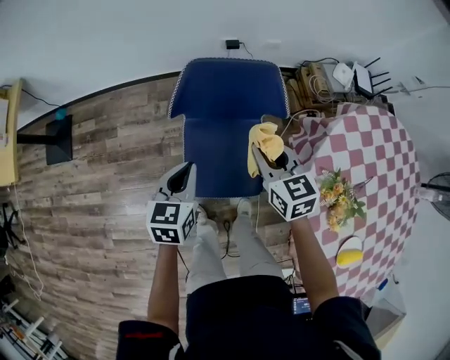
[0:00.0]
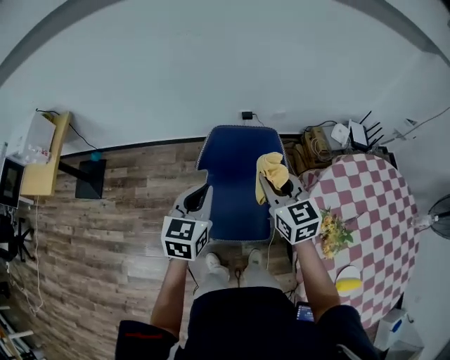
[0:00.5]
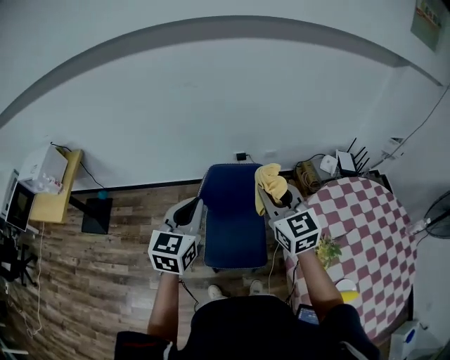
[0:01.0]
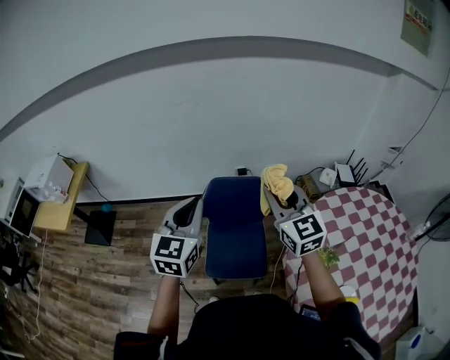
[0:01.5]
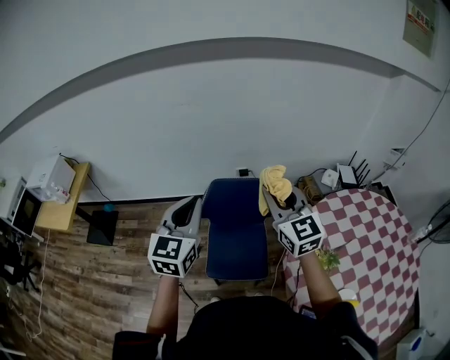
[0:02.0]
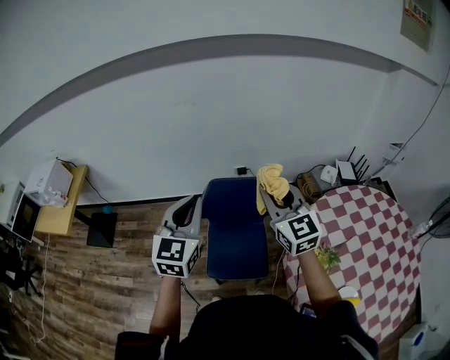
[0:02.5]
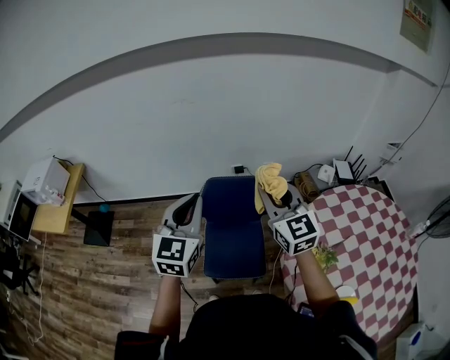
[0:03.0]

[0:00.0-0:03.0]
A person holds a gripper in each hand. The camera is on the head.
0:00.0 to 0:01.5: The grippers both shift upward by about 35 cm. The right gripper rotates approximately 30 degrees. The left gripper rotates about 30 degrees.
0:01.5 to 0:03.0: The grippers move only a little.

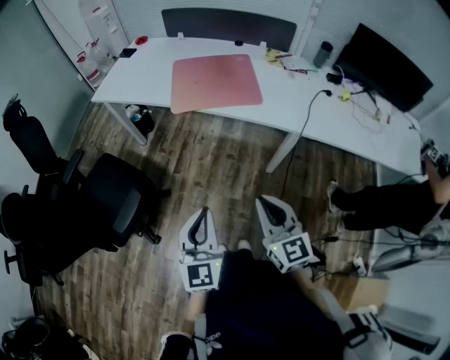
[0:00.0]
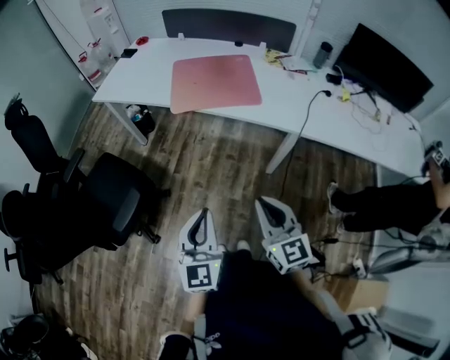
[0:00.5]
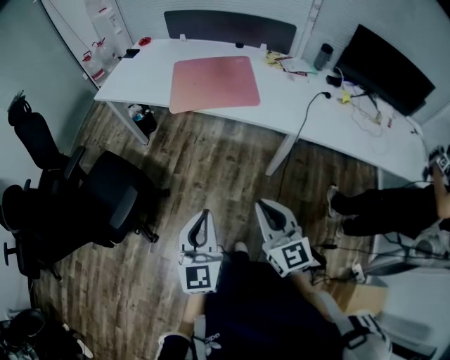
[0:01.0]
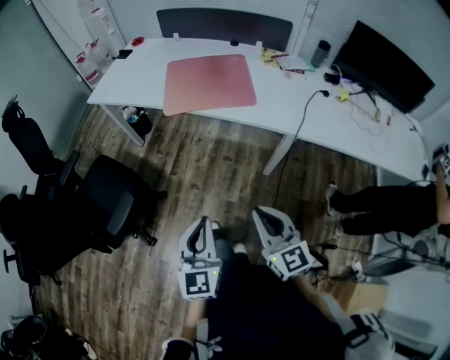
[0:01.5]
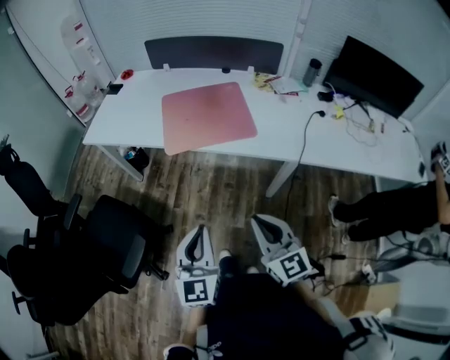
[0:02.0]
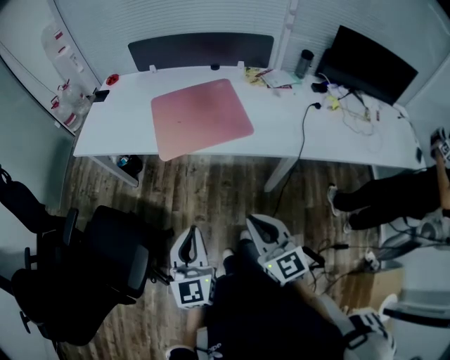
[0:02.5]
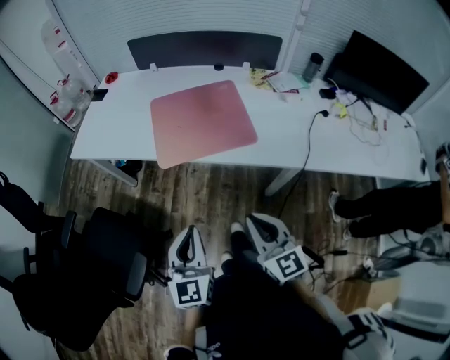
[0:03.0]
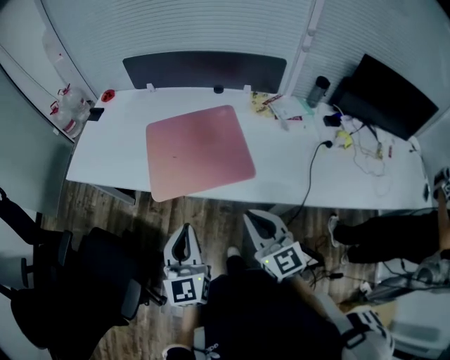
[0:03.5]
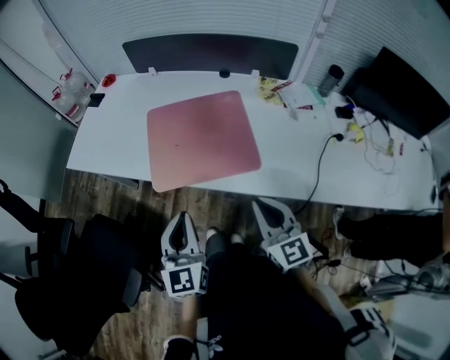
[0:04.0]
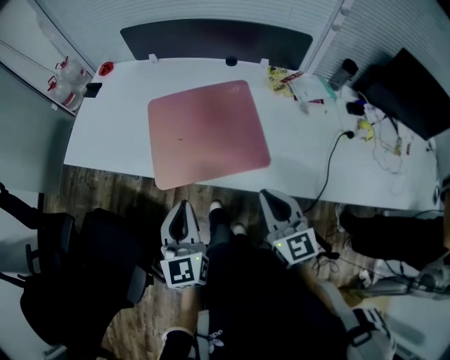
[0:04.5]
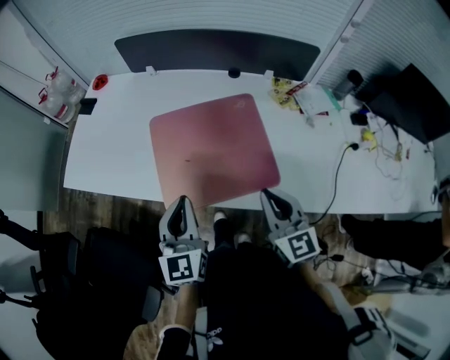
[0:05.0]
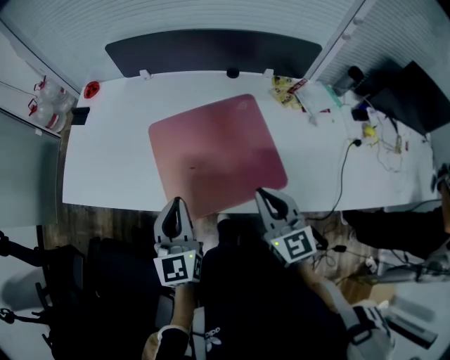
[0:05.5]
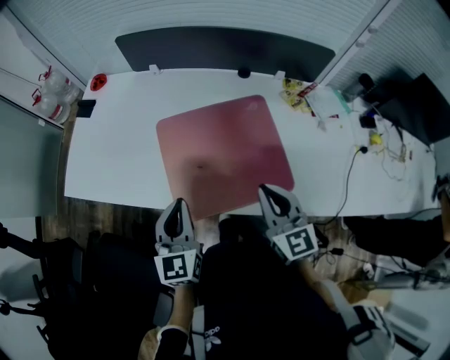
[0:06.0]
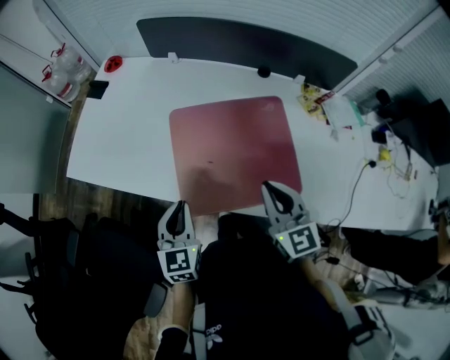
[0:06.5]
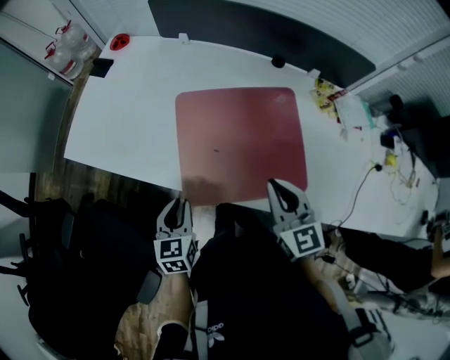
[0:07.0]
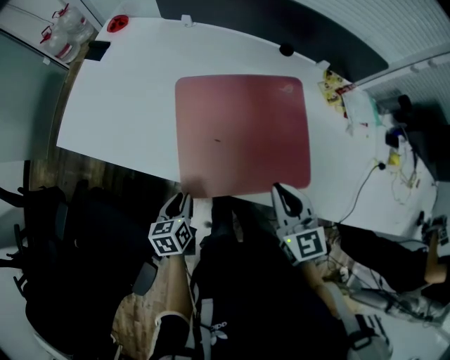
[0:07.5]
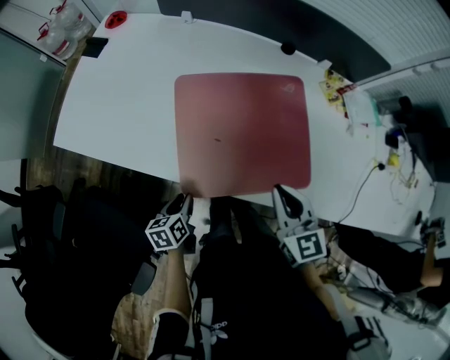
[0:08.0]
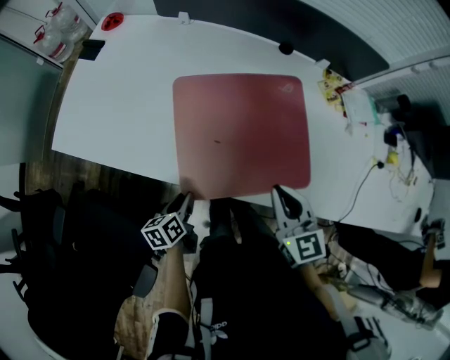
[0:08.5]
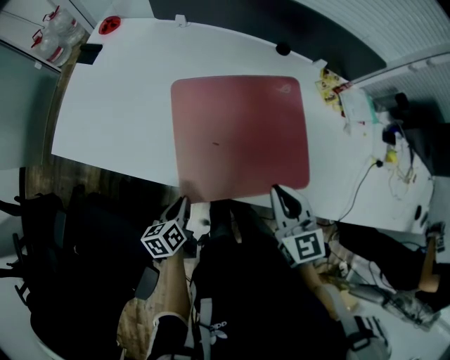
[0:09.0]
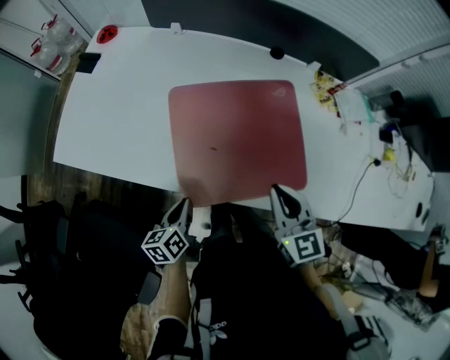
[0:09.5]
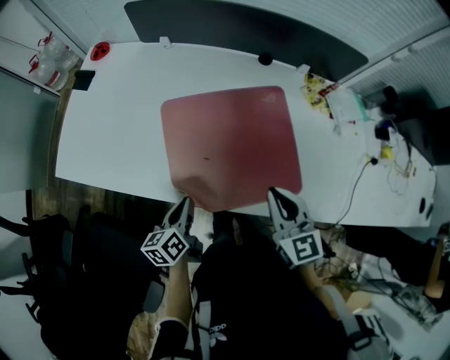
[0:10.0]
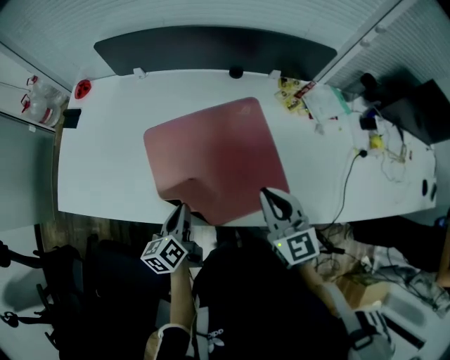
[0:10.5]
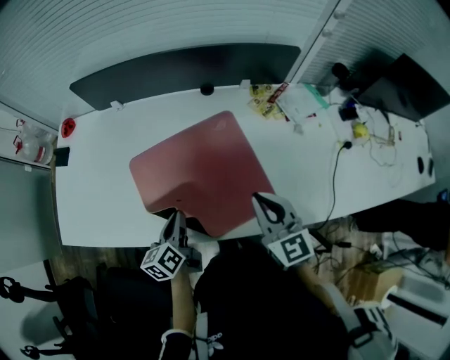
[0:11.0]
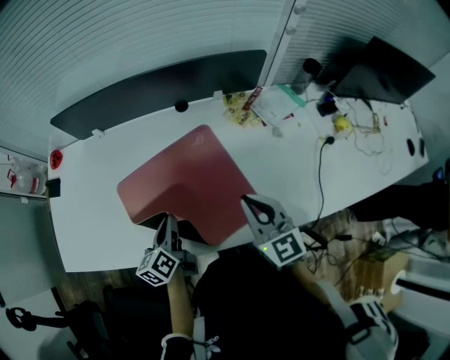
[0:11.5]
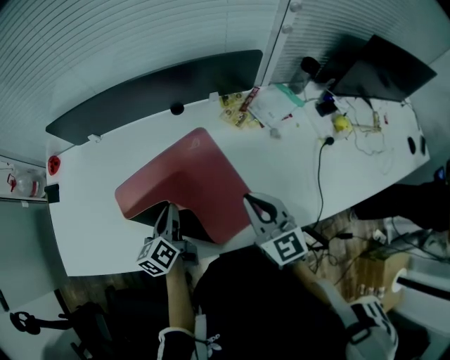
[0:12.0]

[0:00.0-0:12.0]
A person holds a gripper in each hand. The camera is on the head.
0:00.0 to 0:02.0: Both grippers move forward, approximately 10 cm.
0:02.0 to 0:04.0: The two grippers go approximately 25 cm forward.
0:04.0 to 0:06.0: The grippers both shift forward and to the left by approximately 20 cm.
0:06.0 to 0:08.0: The left gripper goes about 25 cm downward, tips its fingers downward by some 30 degrees, and opens its fingers; the right gripper is displaced downward by some 5 cm.
0:08.0 to 0:10.0: The left gripper heads upward and forward, covering about 10 cm.
0:10.0 to 0:12.0: The right gripper is displaced to the right and forward by some 15 cm. Meanwhile the left gripper shifts about 20 cm forward and to the right.

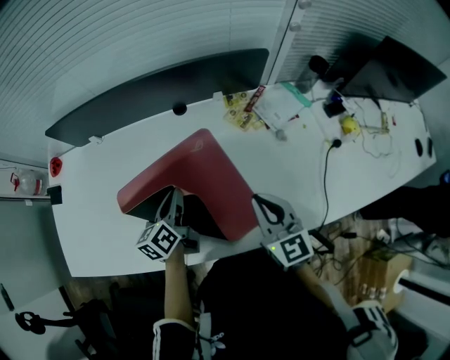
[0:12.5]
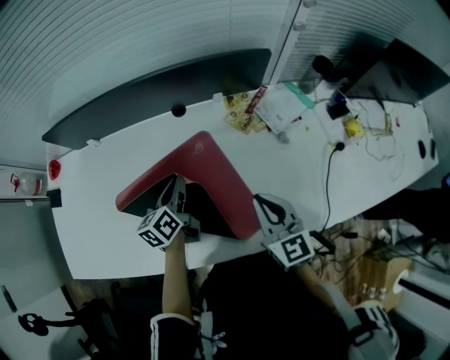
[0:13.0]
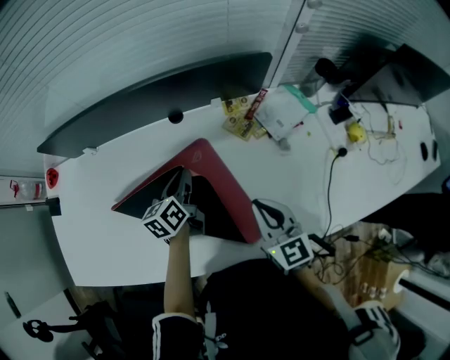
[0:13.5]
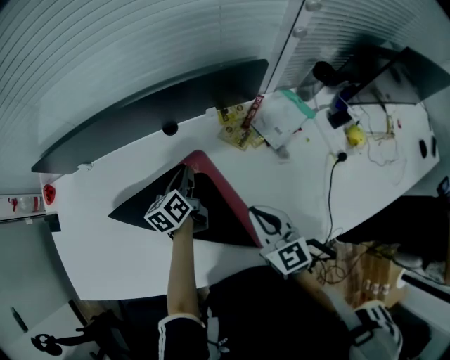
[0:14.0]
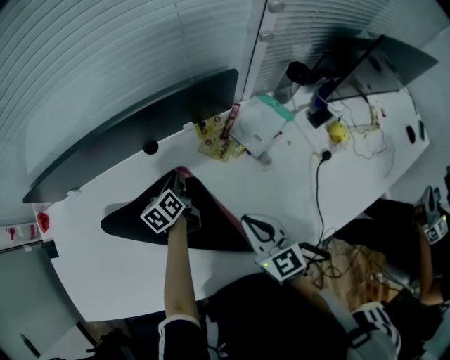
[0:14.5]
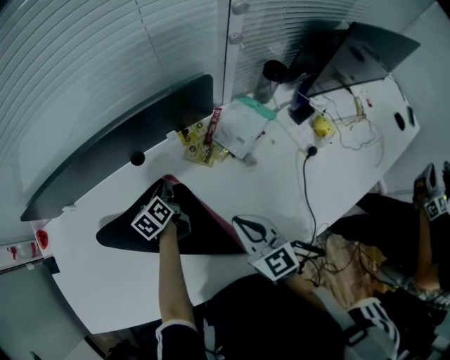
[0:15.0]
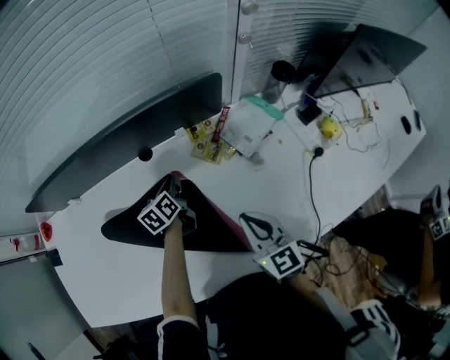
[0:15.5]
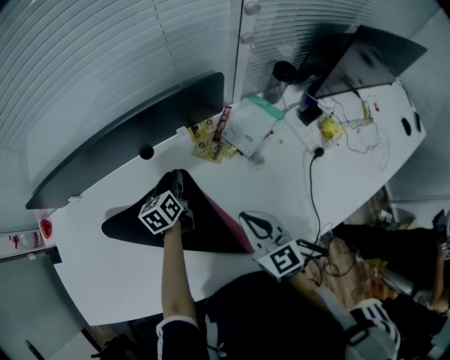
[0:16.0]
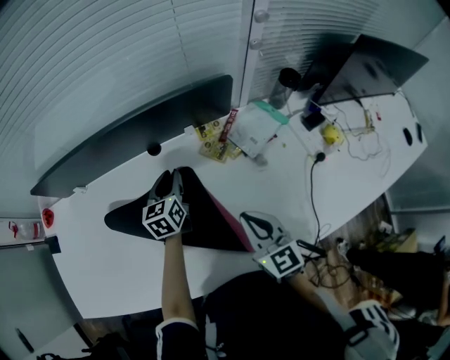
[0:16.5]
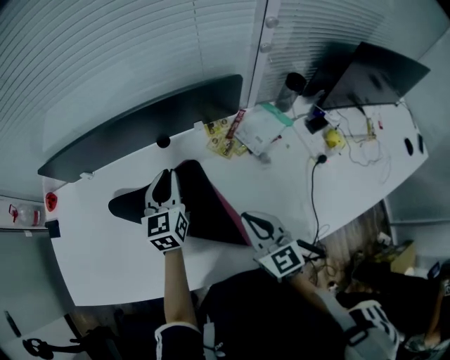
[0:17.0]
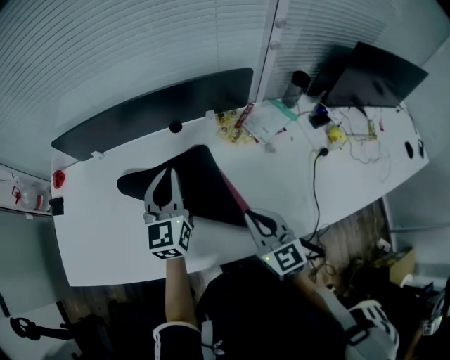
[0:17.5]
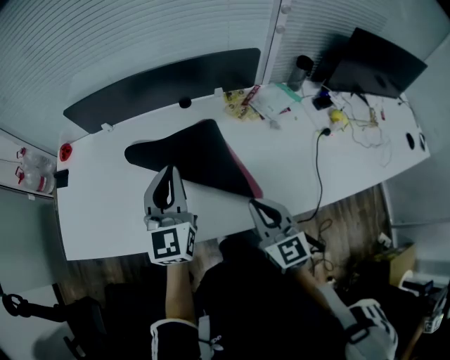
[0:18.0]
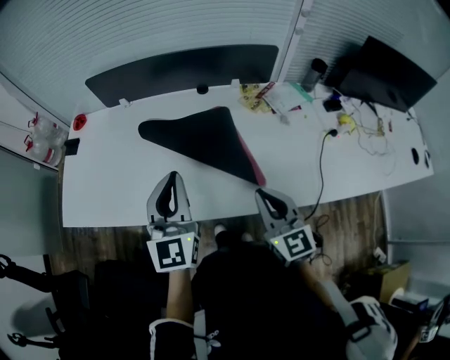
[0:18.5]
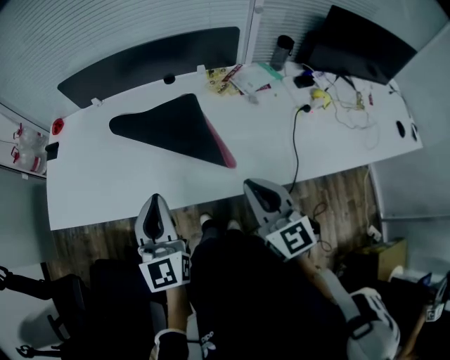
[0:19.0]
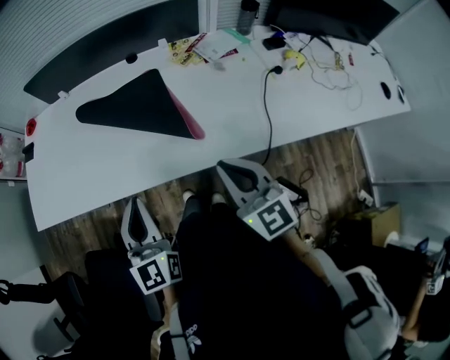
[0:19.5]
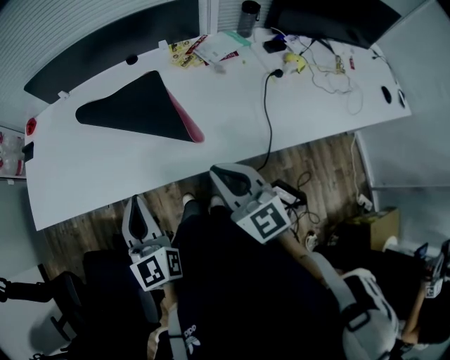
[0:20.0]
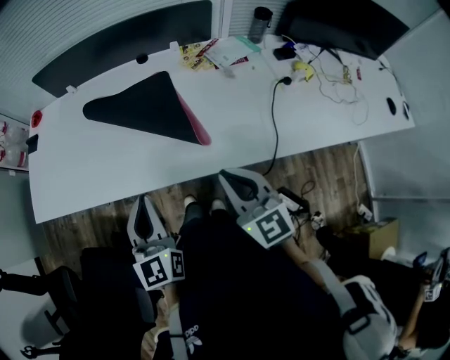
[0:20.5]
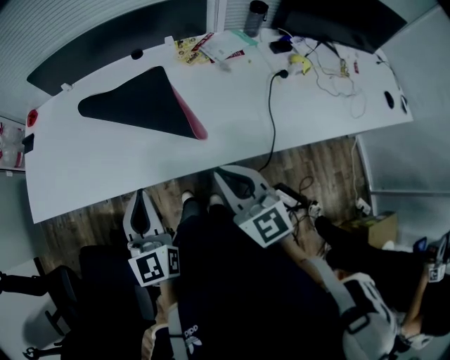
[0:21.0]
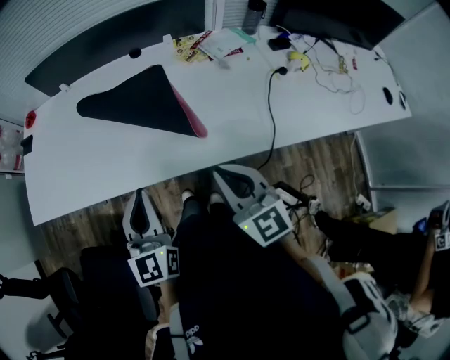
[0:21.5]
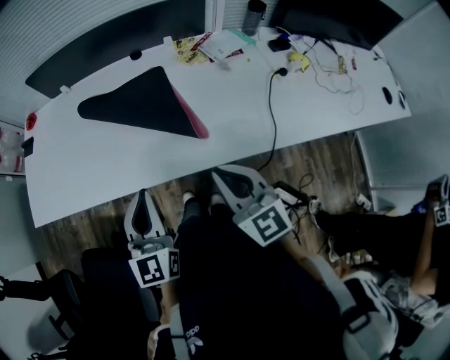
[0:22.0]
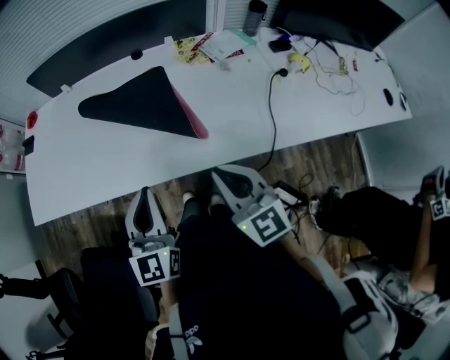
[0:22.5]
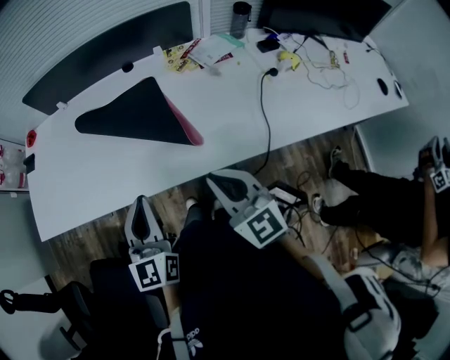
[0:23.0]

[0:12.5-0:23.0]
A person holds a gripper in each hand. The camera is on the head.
0:12.5 to 0:14.5: The left gripper goes roughly 25 cm forward, to the right and downward; the right gripper goes roughly 10 cm forward and downward.
0:14.5 to 0:16.5: The left gripper shifts approximately 5 cm upward, and changes its angle by some 30 degrees.
0:16.5 to 0:19.0: The left gripper heads backward and upward, covering some 50 cm, changes its angle by some 30 degrees, and closes up. The right gripper is displaced backward and upward by some 25 cm.
0:19.0 to 0:21.0: The left gripper travels backward by some 5 cm, while the right gripper changes place by some 5 cm.
0:21.0 to 0:23.0: The grippers make only small movements.

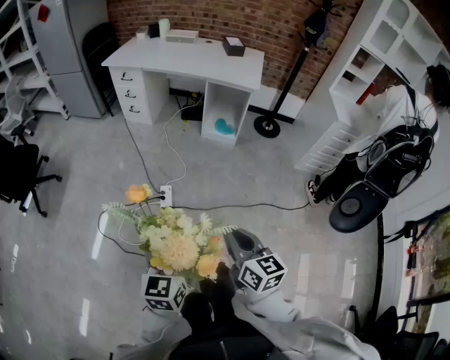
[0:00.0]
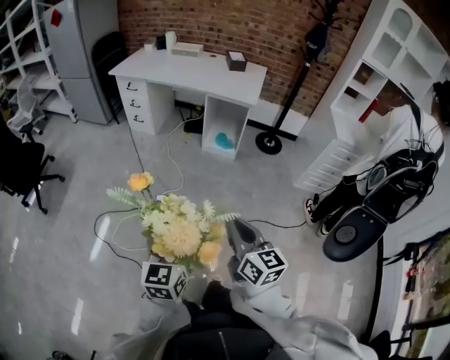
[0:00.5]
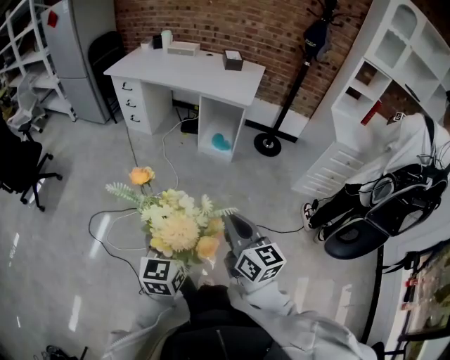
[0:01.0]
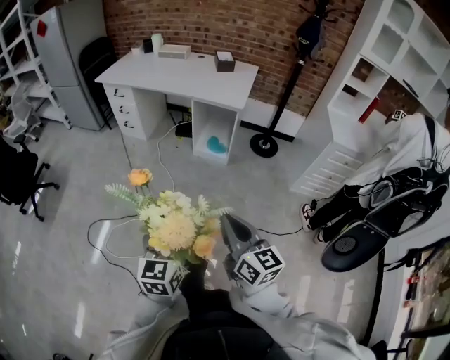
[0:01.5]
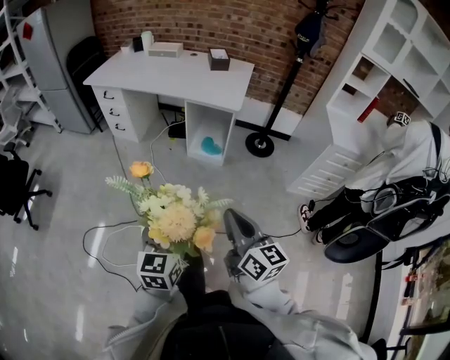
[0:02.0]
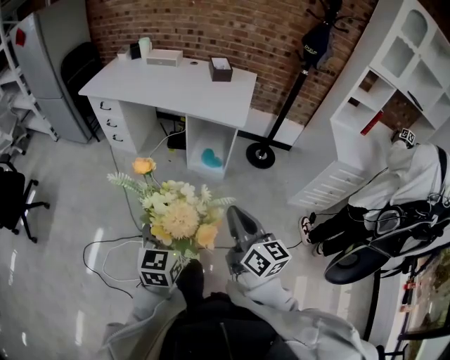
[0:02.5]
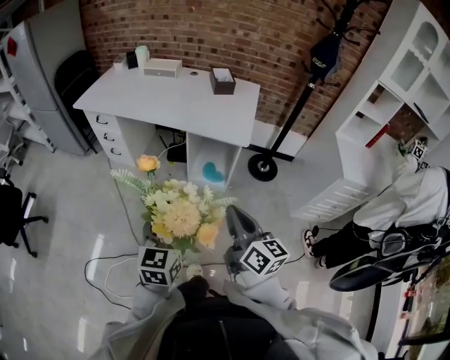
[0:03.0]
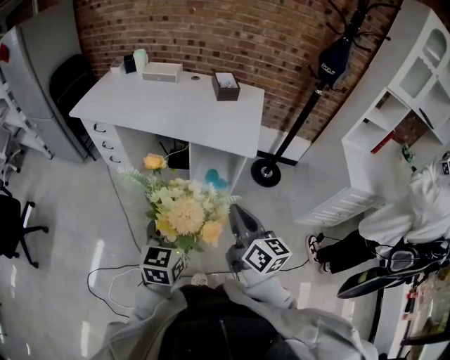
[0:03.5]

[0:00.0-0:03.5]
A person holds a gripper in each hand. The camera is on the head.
0:00.0 to 0:02.0: The right gripper travels to the right and forward by some 30 cm. The left gripper heads forward and to the right, covering approximately 30 cm.
0:02.0 to 0:03.5: Both grippers travel together forward, approximately 35 cm.
